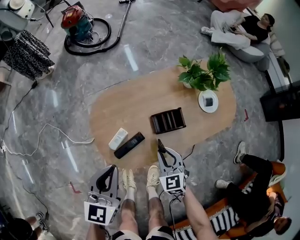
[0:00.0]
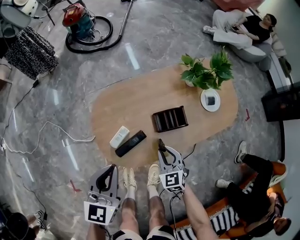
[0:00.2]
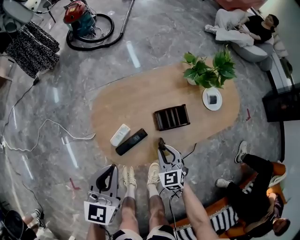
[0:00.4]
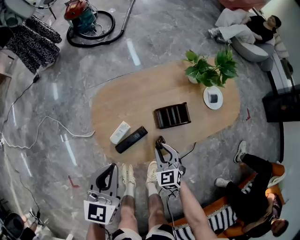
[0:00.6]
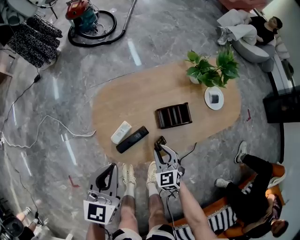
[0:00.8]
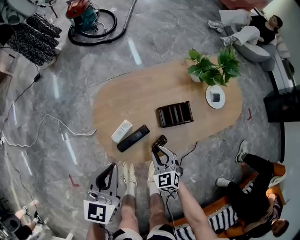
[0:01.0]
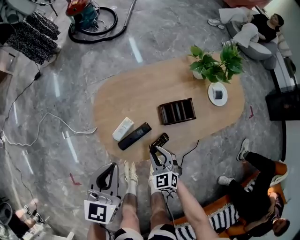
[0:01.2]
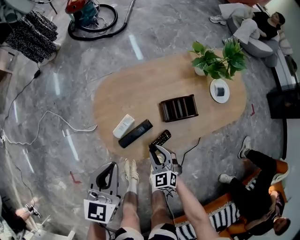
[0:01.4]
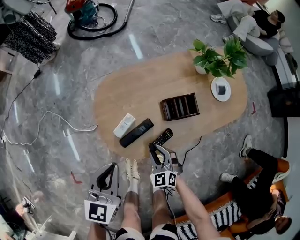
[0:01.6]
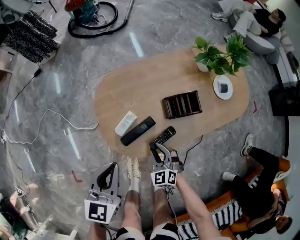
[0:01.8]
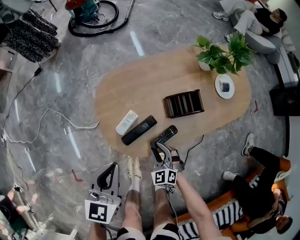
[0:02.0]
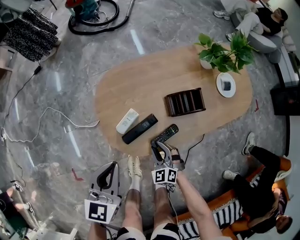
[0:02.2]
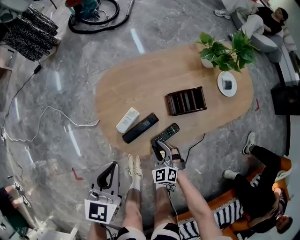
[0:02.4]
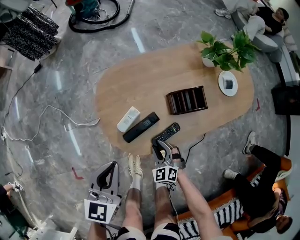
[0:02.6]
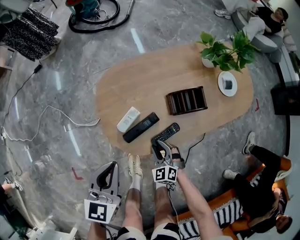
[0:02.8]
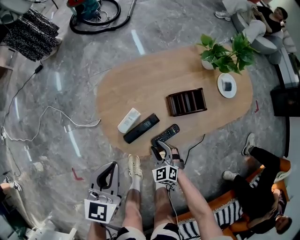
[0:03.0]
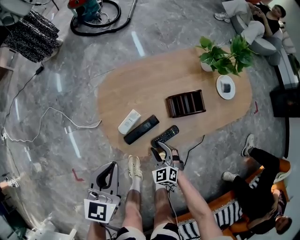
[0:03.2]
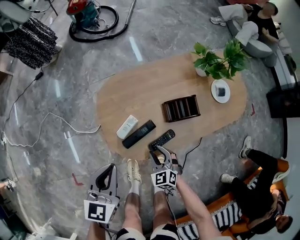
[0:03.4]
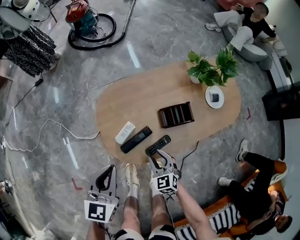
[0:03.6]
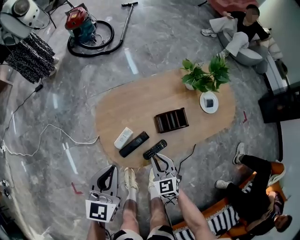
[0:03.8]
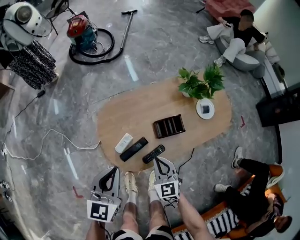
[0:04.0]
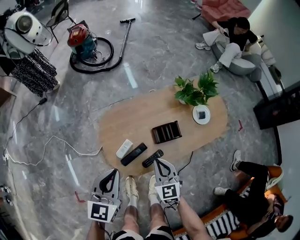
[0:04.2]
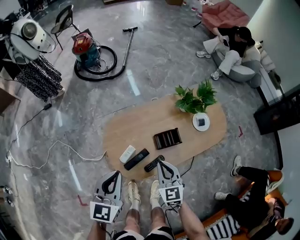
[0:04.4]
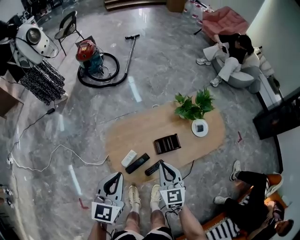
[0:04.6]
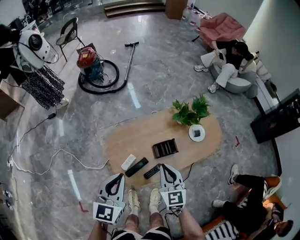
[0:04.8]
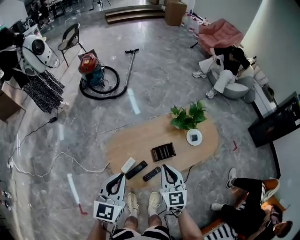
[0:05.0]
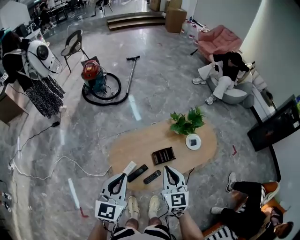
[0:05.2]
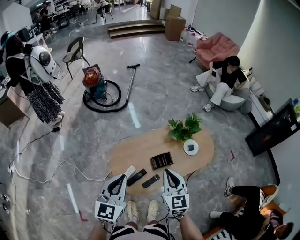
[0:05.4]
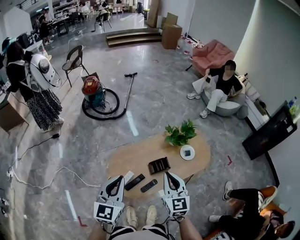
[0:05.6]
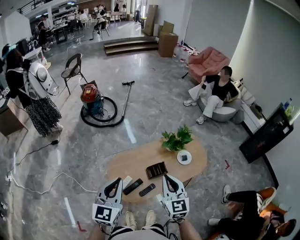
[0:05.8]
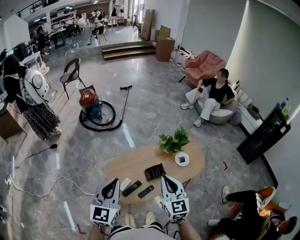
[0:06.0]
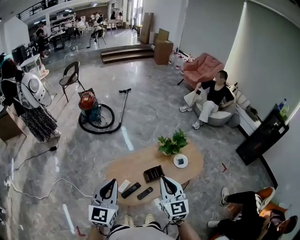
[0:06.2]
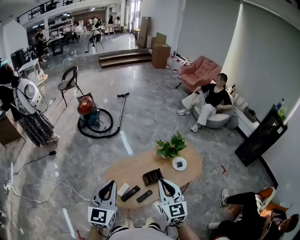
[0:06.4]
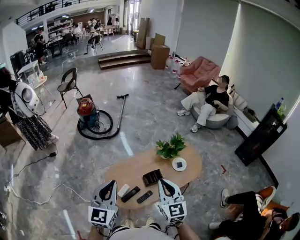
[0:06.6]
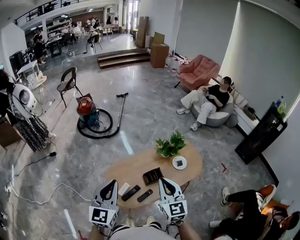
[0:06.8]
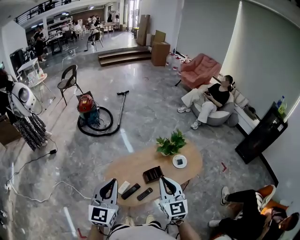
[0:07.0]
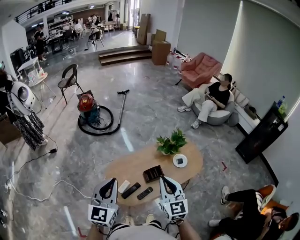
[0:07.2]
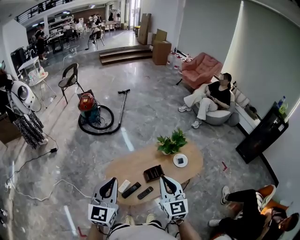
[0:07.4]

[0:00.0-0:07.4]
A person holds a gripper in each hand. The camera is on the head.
0:00.0 to 0:01.4: The right gripper travels downward, to the left and backward by some 15 cm. Meanwhile the left gripper moves roughly 5 cm.
0:01.4 to 0:03.0: The right gripper heads downward, covering about 5 cm.
0:03.0 to 0:04.4: The right gripper is displaced upward by approximately 30 cm, rotates approximately 30 degrees, and closes up. The left gripper goes about 15 cm upward.
0:04.4 to 0:06.0: Both grippers travel together upward, about 25 cm.
0:06.0 to 0:07.4: There are only small adjustments of the grippers.

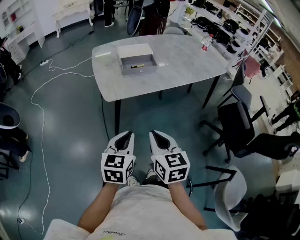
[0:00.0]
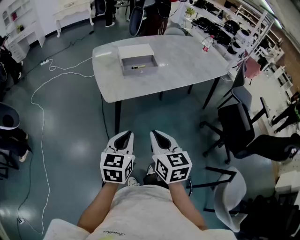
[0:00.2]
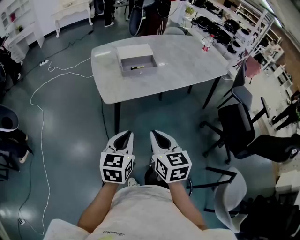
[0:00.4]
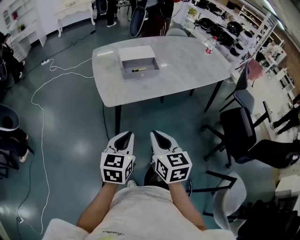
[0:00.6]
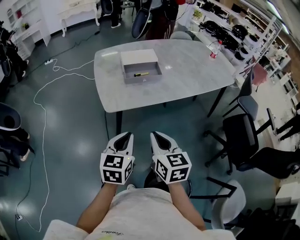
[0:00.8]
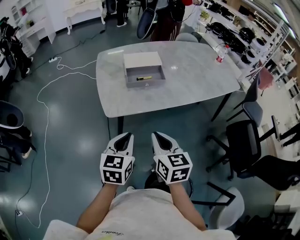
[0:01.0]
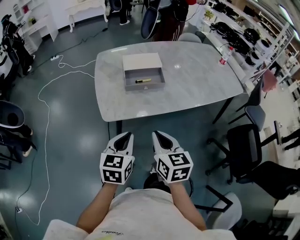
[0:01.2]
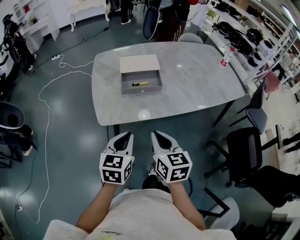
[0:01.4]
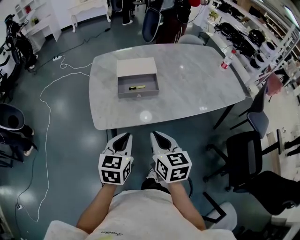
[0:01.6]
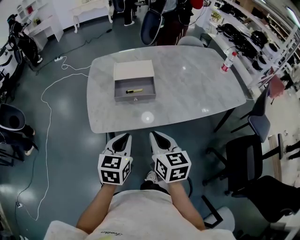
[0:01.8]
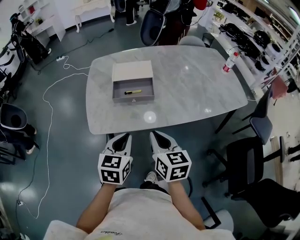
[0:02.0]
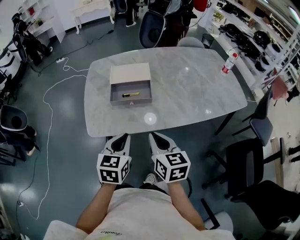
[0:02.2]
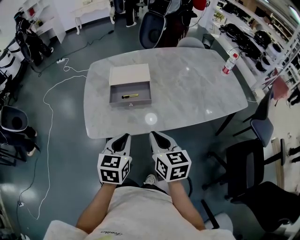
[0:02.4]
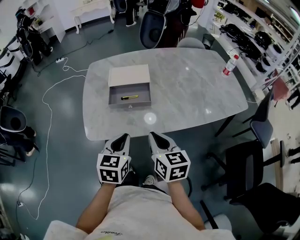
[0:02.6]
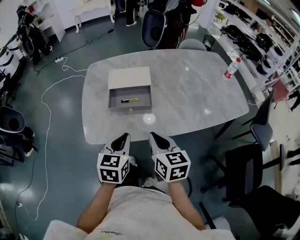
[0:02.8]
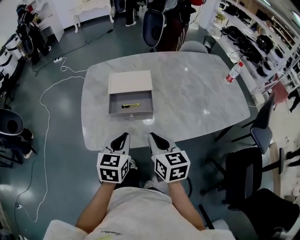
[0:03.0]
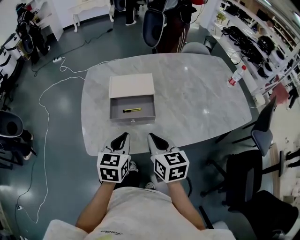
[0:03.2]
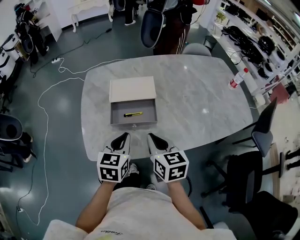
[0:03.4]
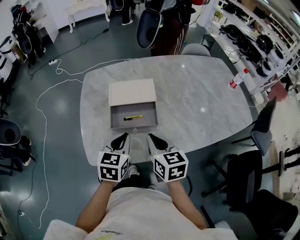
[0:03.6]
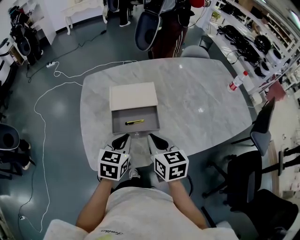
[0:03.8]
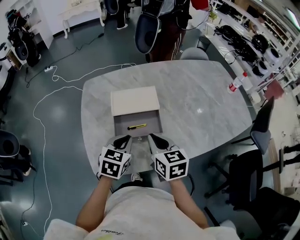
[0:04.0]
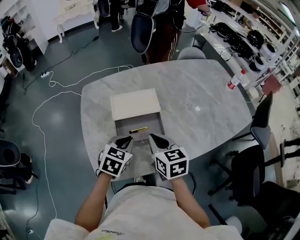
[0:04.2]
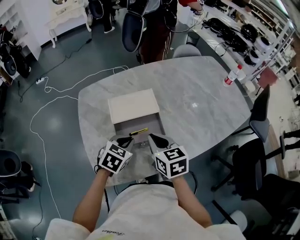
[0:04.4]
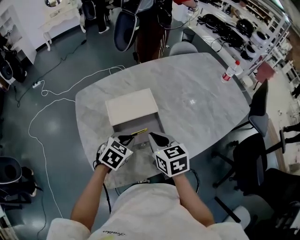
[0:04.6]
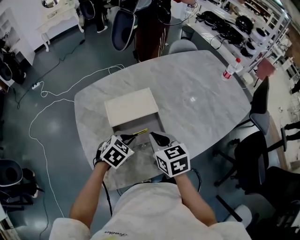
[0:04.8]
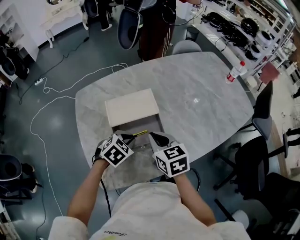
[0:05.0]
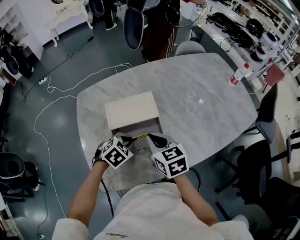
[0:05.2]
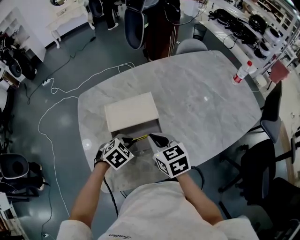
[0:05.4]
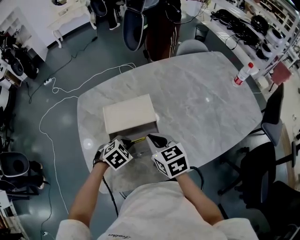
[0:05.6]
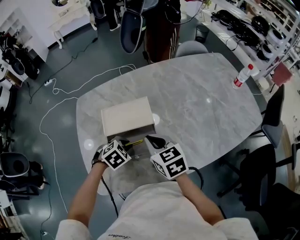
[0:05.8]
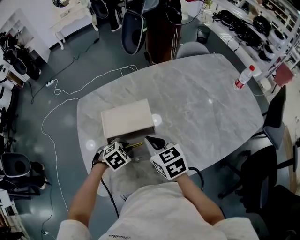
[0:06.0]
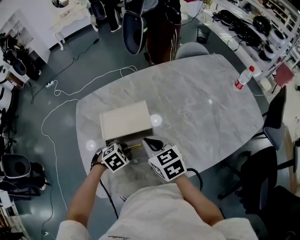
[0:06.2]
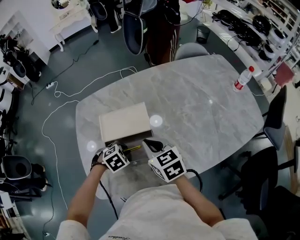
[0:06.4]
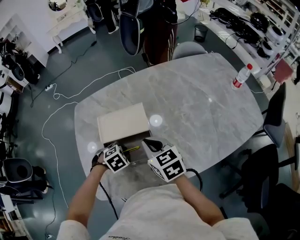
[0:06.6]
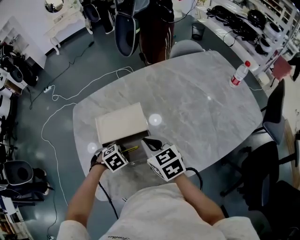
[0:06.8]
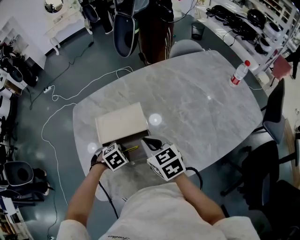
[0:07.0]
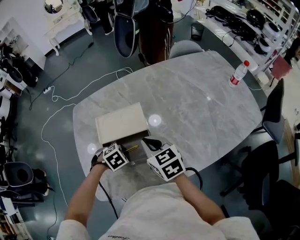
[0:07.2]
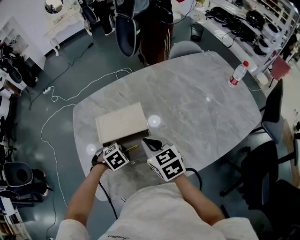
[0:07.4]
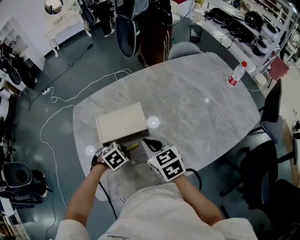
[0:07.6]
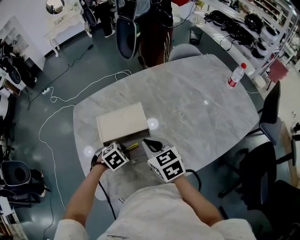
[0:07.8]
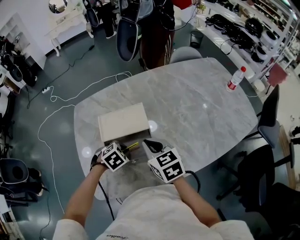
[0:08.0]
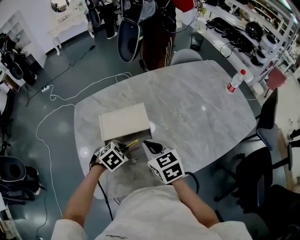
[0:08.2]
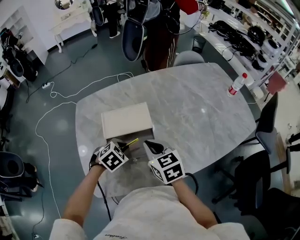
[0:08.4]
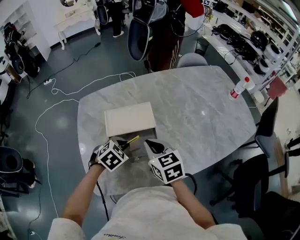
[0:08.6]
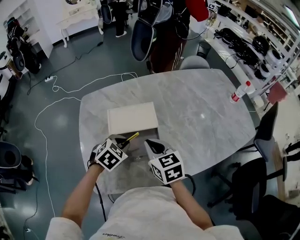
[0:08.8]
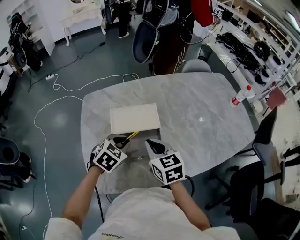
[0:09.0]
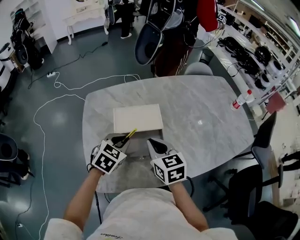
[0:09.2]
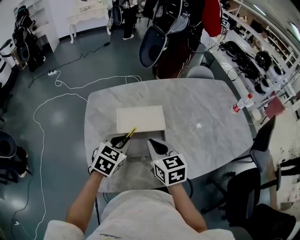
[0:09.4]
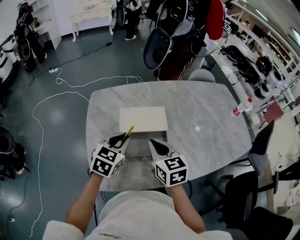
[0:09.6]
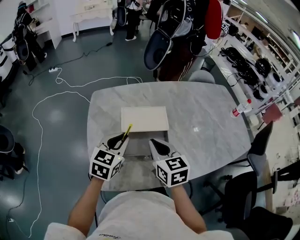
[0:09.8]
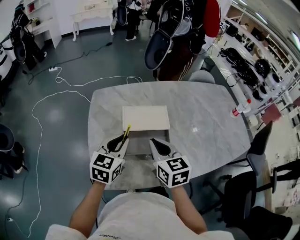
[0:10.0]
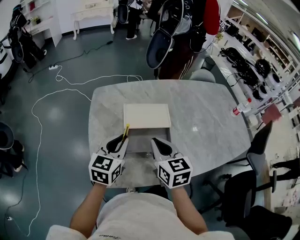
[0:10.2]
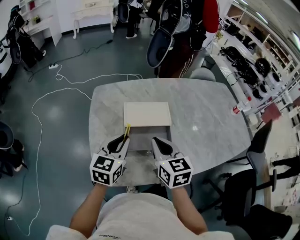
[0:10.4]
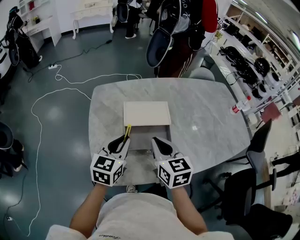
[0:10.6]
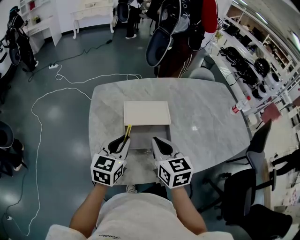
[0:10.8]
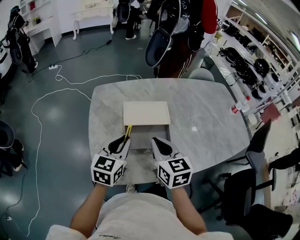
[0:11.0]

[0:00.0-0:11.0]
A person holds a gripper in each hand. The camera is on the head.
0:00.0 to 0:01.6: The right gripper heads forward and to the right, covering approximately 25 cm. Meanwhile the left gripper shifts about 20 cm forward.
0:01.6 to 0:03.2: Both grippers travel together forward, about 15 cm.
0:03.2 to 0:04.8: The right gripper is displaced forward and to the left by about 15 cm. The left gripper shifts some 15 cm forward and downward, and swivels roughly 50 degrees.
0:04.8 to 0:06.2: The left gripper moves downward, approximately 5 cm, and swivels some 20 degrees. The right gripper travels forward by some 5 cm.
0:06.2 to 0:07.8: There are only small adjustments of the grippers.
0:07.8 to 0:09.4: The left gripper travels upward by approximately 15 cm, and tilts its fingers roughly 40 degrees upward. The right gripper shifts by some 10 cm.
0:09.4 to 0:11.0: The right gripper ends up about 5 cm from where it was. Meanwhile the left gripper shifts roughly 5 cm backward, and swivels some 30 degrees.

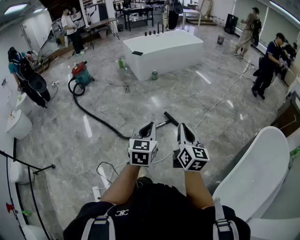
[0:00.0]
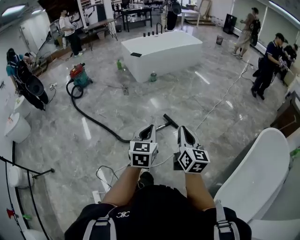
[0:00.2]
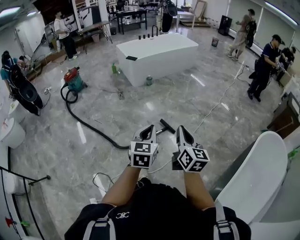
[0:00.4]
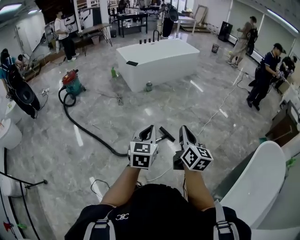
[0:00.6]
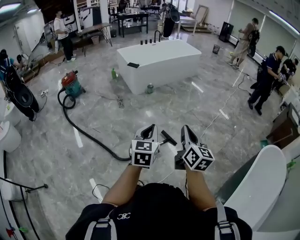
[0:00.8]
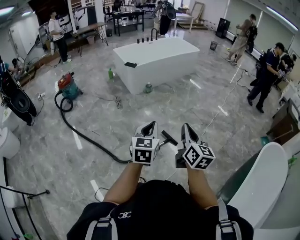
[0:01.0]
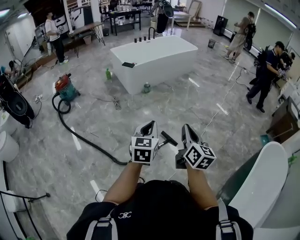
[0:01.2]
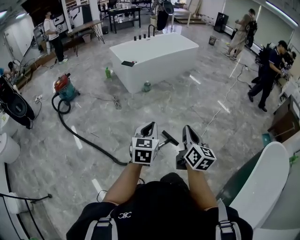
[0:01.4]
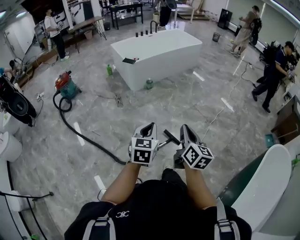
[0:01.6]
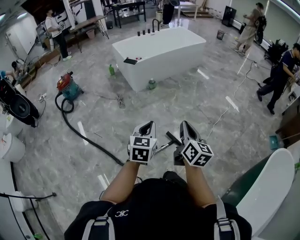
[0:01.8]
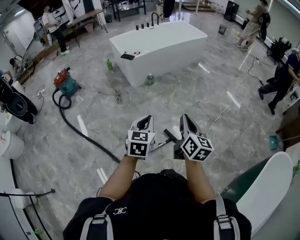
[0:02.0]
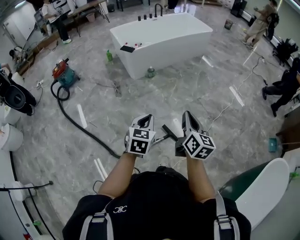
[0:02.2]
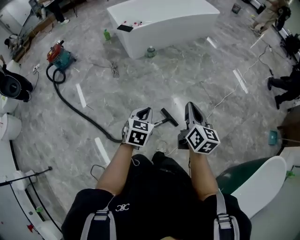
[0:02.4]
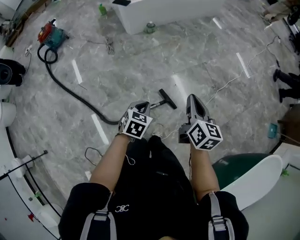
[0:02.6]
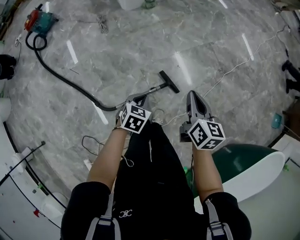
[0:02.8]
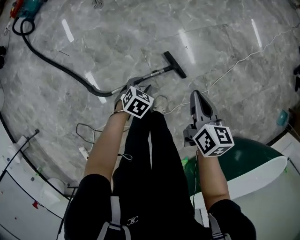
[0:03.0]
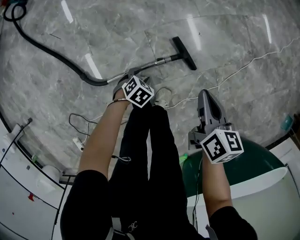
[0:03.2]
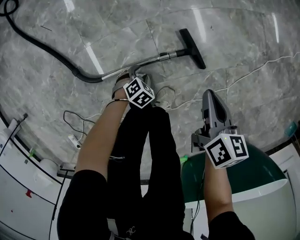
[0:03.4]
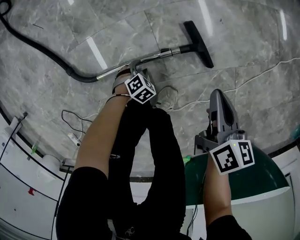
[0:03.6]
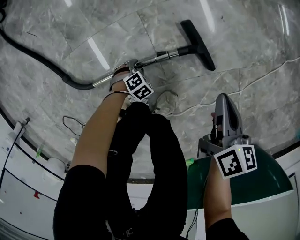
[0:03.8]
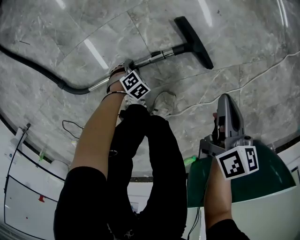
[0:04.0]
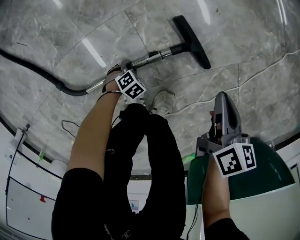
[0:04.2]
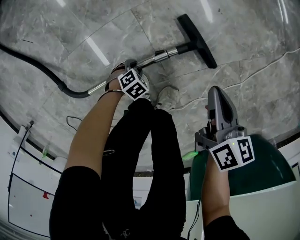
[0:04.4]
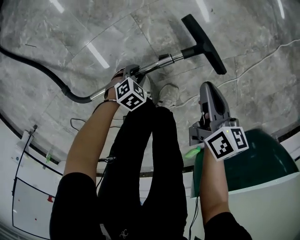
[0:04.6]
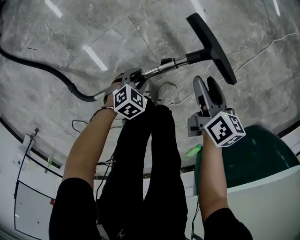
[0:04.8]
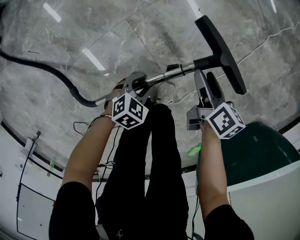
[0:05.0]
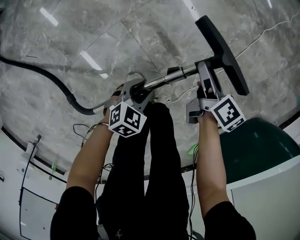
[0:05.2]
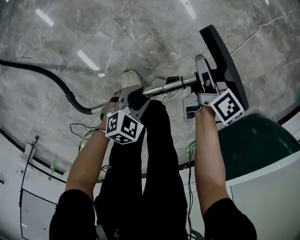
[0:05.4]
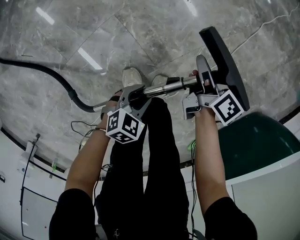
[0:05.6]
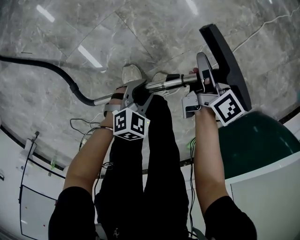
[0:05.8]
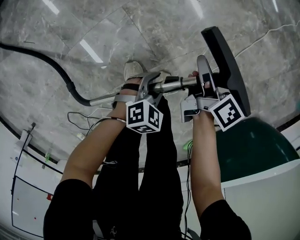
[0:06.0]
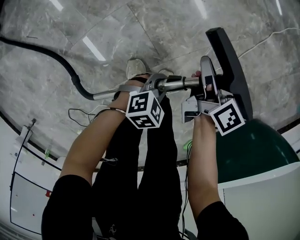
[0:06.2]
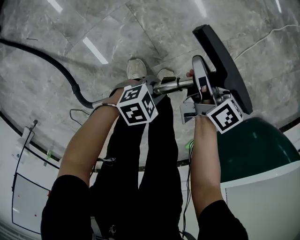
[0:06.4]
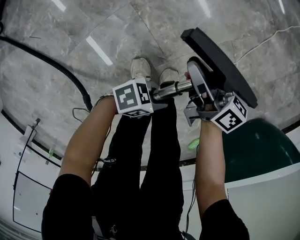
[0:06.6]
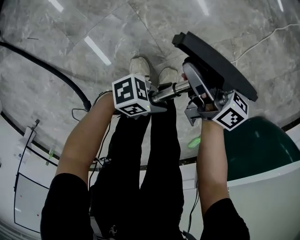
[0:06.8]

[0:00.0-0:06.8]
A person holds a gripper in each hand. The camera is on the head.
0:00.0 to 0:01.4: The two grippers go approximately 35 cm forward.
0:01.4 to 0:02.8: The right gripper goes roughly 40 cm forward and downward, and changes its angle by approximately 30 degrees; the left gripper is displaced downward and forward by approximately 50 cm, and angles its fingers downward, by approximately 40 degrees.
0:02.8 to 0:04.0: Both grippers travel together downward, approximately 60 cm. The left gripper turns by about 40 degrees, and opens up. The right gripper rotates about 20 degrees.
0:04.0 to 0:05.4: The left gripper heads upward, covering about 30 cm, and tilts its fingers roughly 30 degrees upward. Meanwhile the right gripper changes its angle by some 30 degrees, and opens its fingers.
0:05.4 to 0:06.8: The right gripper shifts by about 15 cm, tilts its fingers approximately 30 degrees upward, and closes its fingers. Meanwhile the left gripper changes place by roughly 10 cm, angles its fingers upward, by some 40 degrees, and closes its fingers.
